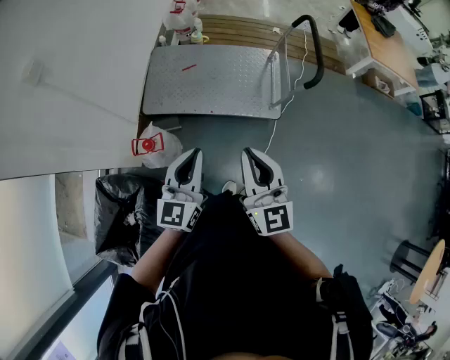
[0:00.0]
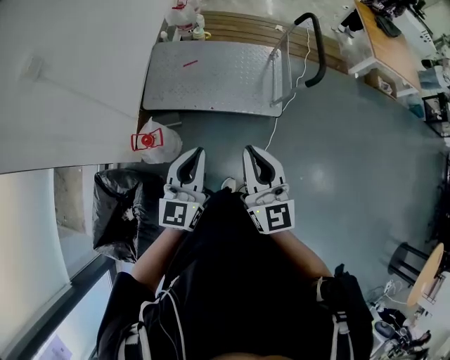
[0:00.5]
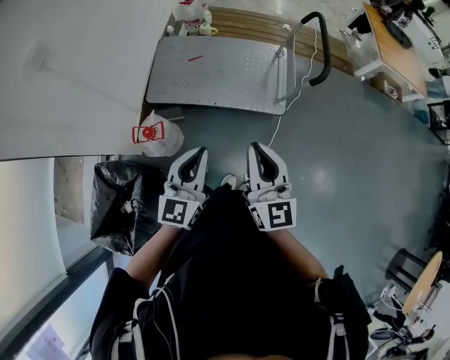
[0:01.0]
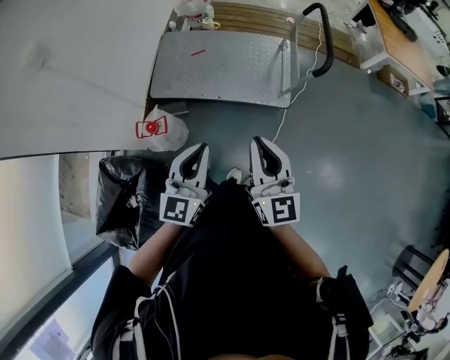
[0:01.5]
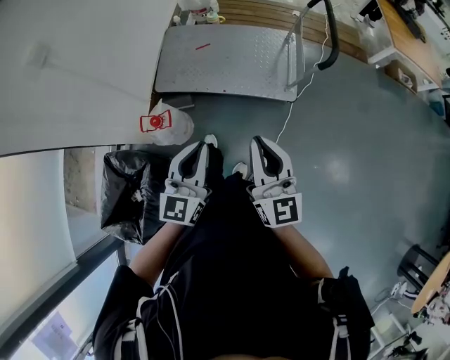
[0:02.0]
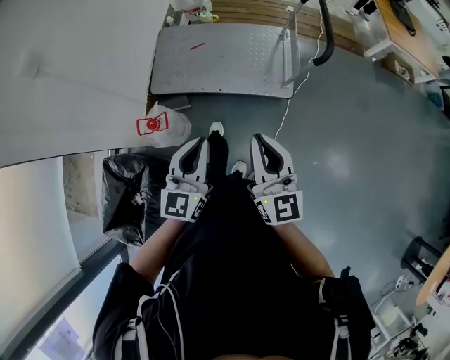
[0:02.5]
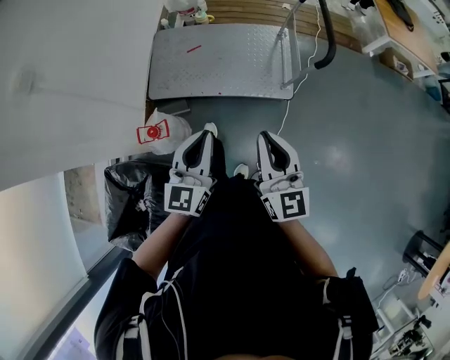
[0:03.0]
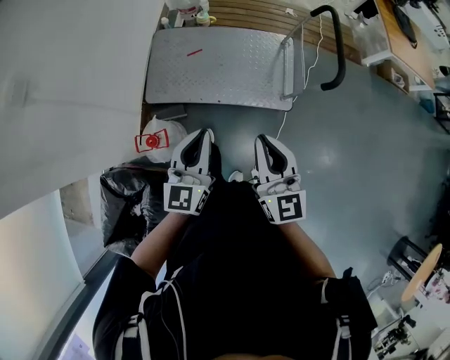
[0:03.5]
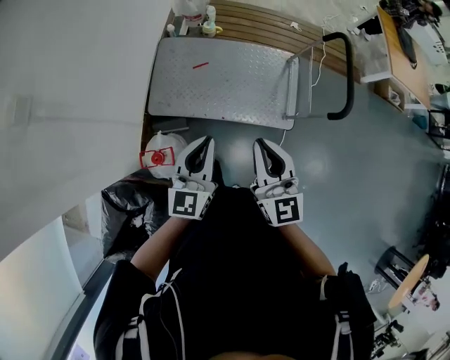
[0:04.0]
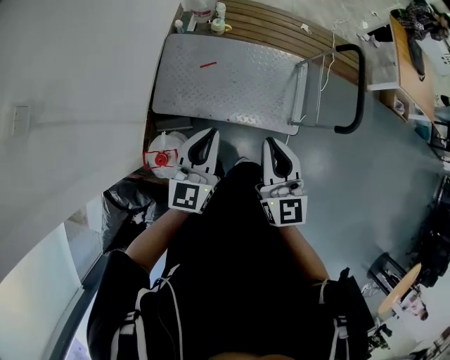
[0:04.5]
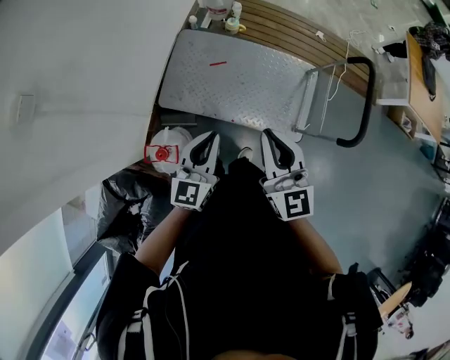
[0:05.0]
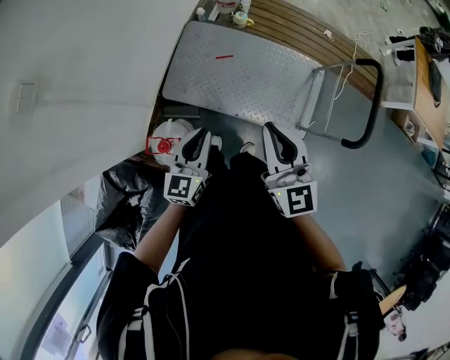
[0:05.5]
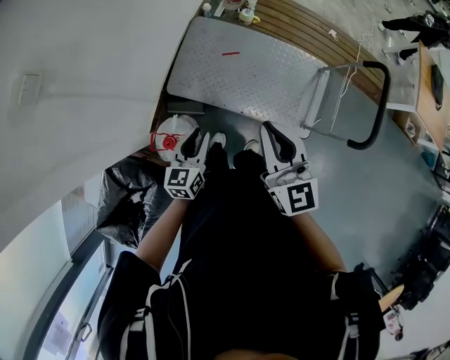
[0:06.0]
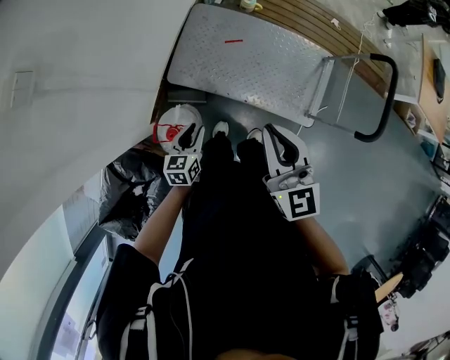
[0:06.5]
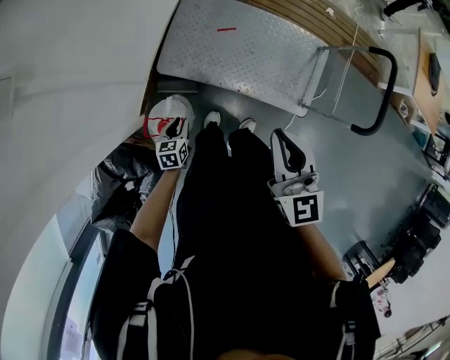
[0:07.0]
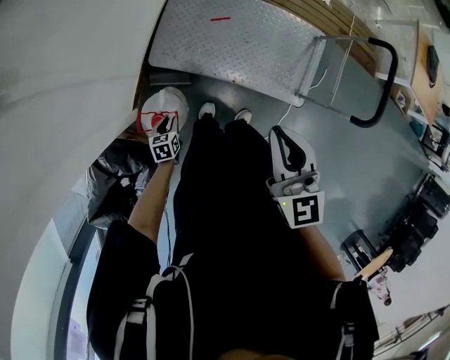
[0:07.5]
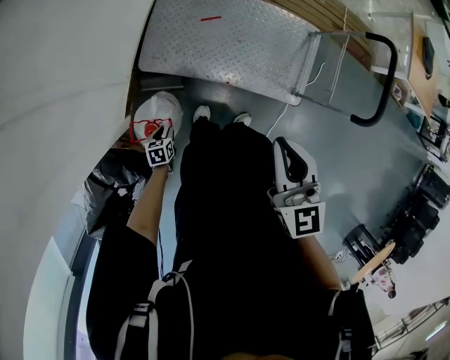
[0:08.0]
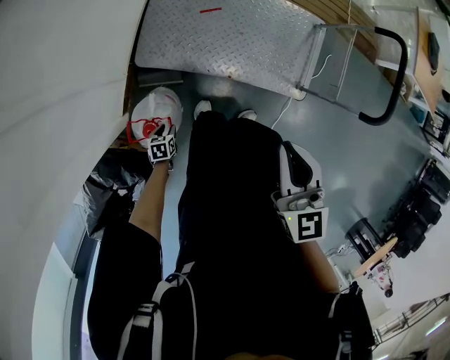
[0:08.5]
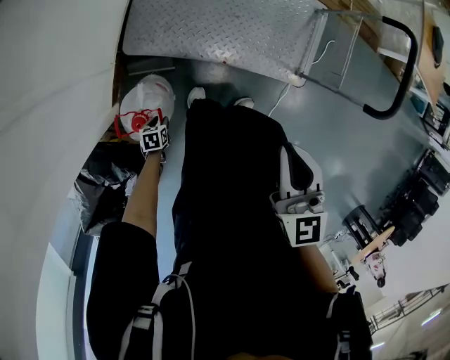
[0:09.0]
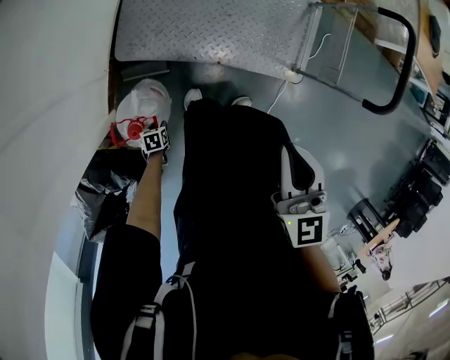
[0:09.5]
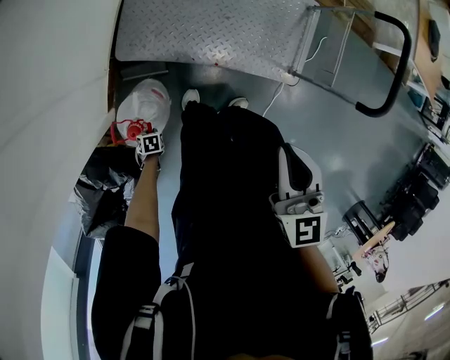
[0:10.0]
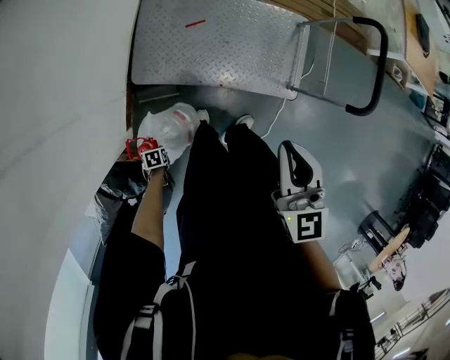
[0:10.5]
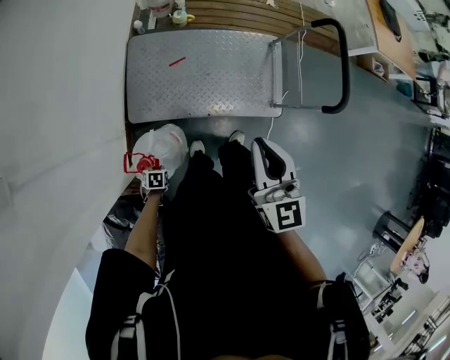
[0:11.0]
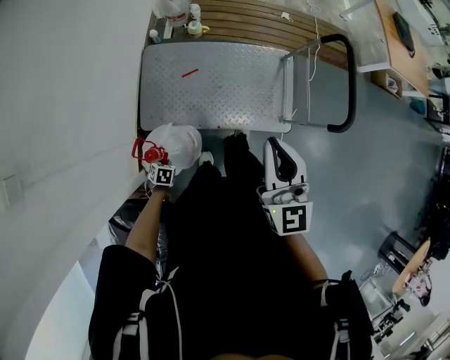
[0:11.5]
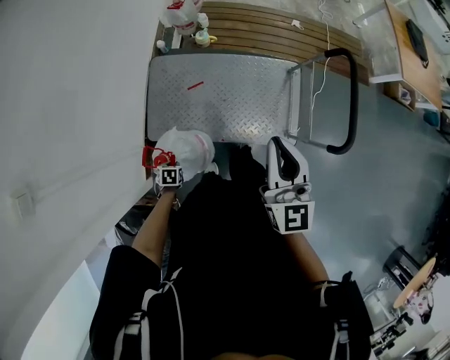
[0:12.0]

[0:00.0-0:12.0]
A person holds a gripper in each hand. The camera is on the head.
0:00.0 to 0:02.0: The right gripper moves some 5 cm, while the left gripper ends up about 5 cm from where it was.
0:02.0 to 0:04.0: The right gripper moves forward and to the left, about 30 cm. Meanwhile the left gripper is displaced forward by some 25 cm.
0:04.0 to 0:06.0: The left gripper travels downward and to the left by approximately 20 cm, and changes its angle by approximately 20 degrees. Meanwhile the right gripper moves forward and to the left, approximately 15 cm.
0:06.0 to 0:08.0: The left gripper shifts roughly 35 cm downward, and tips its fingers downward by some 40 degrees. Meanwhile the right gripper shifts some 5 cm downward.
0:08.0 to 0:10.0: The right gripper goes approximately 5 cm downward; the left gripper moves downward, some 10 cm, changes its angle by about 30 degrees, and closes up.
0:10.0 to 0:12.0: The left gripper moves about 35 cm, while the right gripper changes place by about 25 cm, and turns by some 30 degrees.

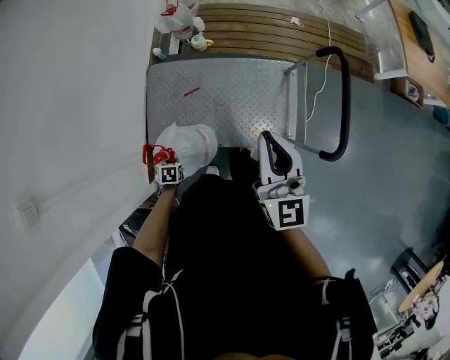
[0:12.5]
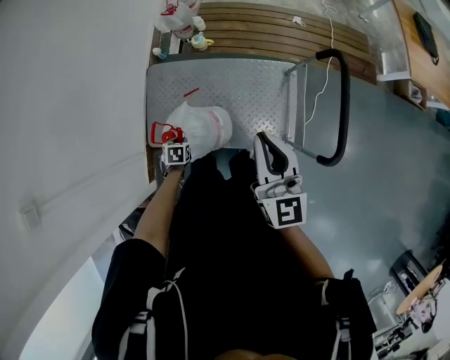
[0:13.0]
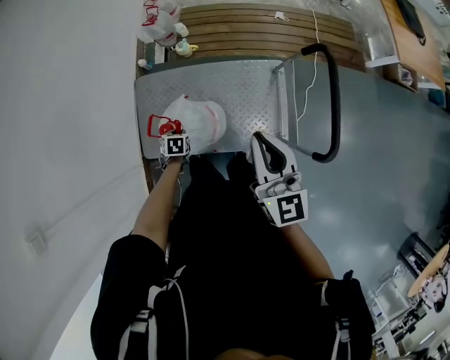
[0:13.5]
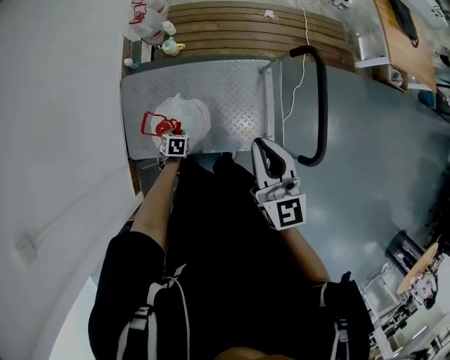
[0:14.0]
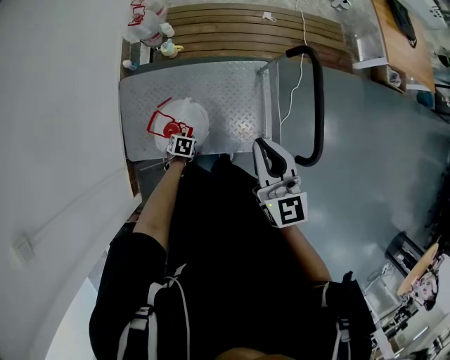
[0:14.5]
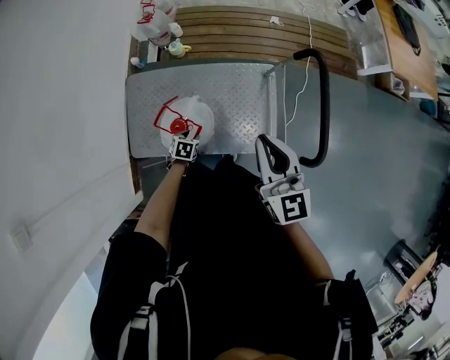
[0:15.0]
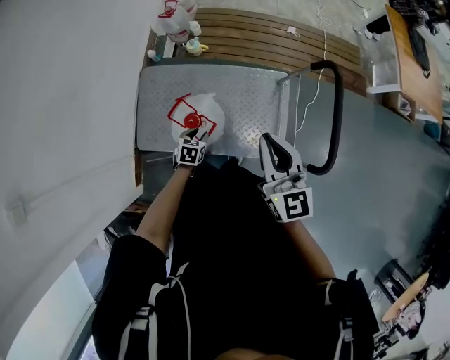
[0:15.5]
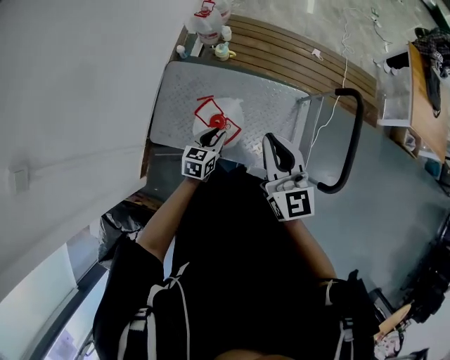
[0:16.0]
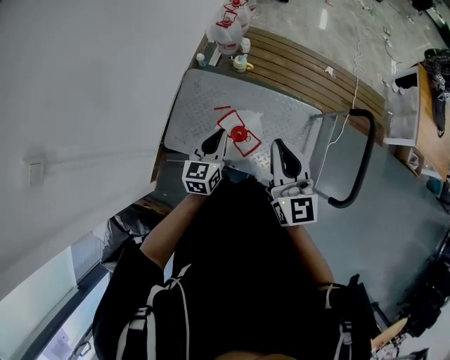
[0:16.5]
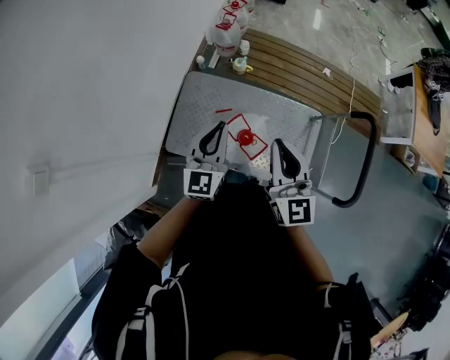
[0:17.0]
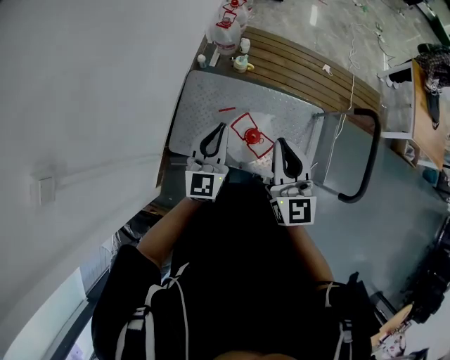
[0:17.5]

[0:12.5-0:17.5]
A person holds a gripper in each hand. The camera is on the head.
0:12.5 to 0:15.0: The left gripper ends up roughly 25 cm from where it was, changes its angle by about 20 degrees, and opens its fingers. Meanwhile the right gripper changes place by roughly 10 cm.
0:15.0 to 0:17.5: The right gripper shifts approximately 25 cm to the left; the left gripper is displaced upward and to the left by about 40 cm, points its fingers roughly 60 degrees further upward, and closes up.

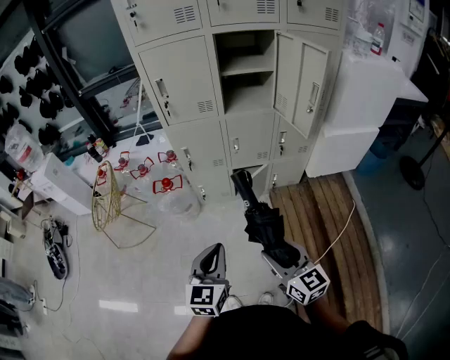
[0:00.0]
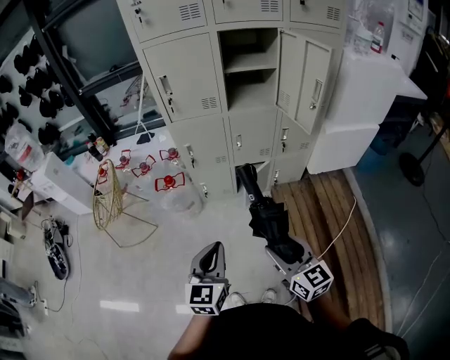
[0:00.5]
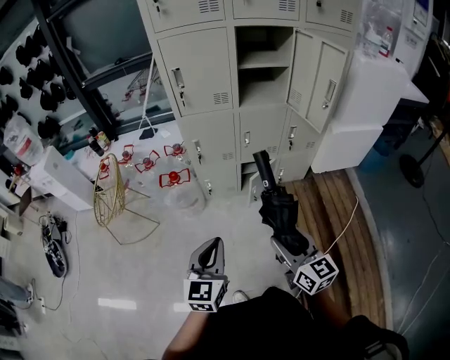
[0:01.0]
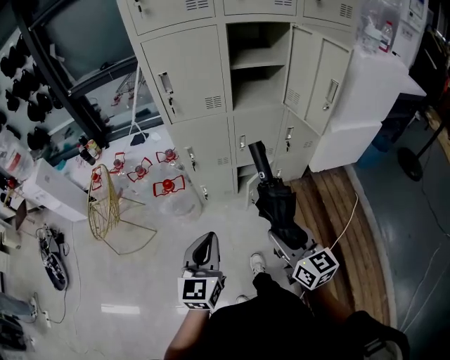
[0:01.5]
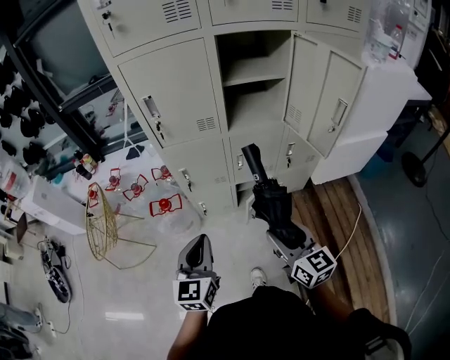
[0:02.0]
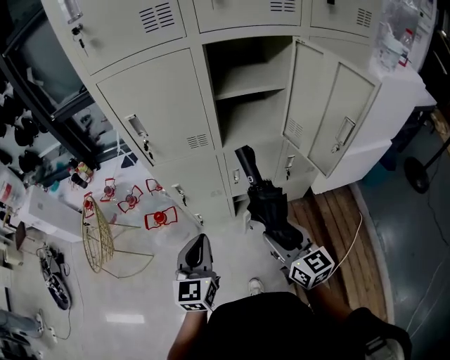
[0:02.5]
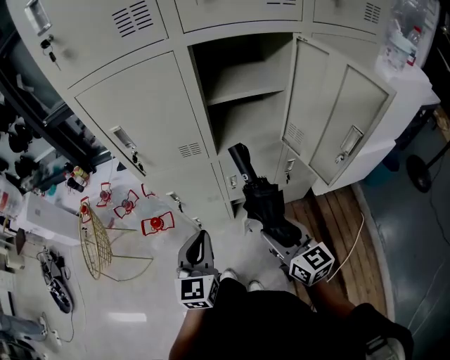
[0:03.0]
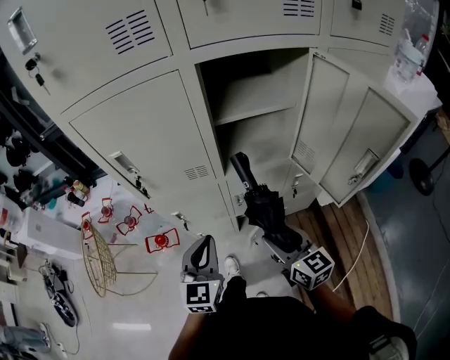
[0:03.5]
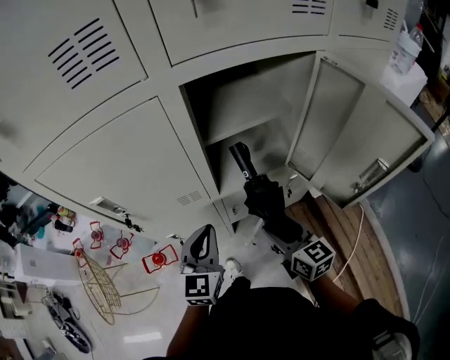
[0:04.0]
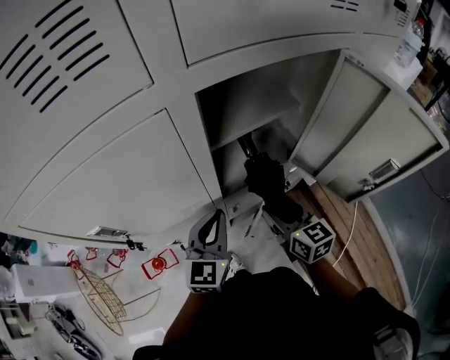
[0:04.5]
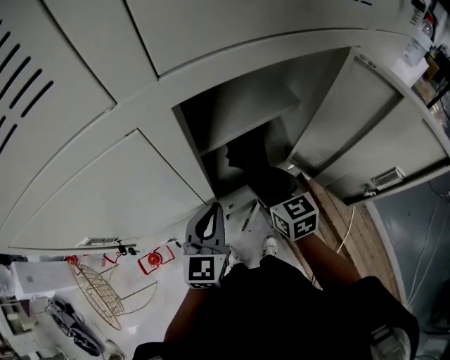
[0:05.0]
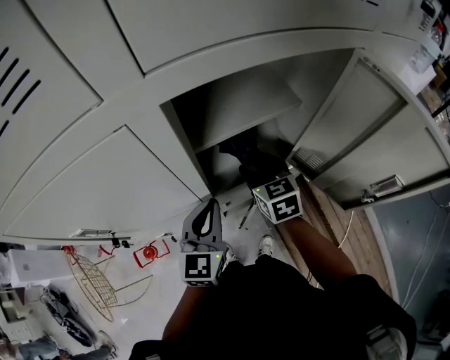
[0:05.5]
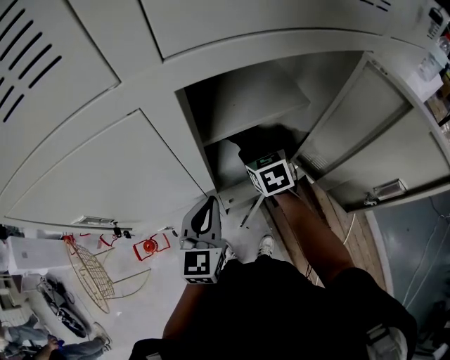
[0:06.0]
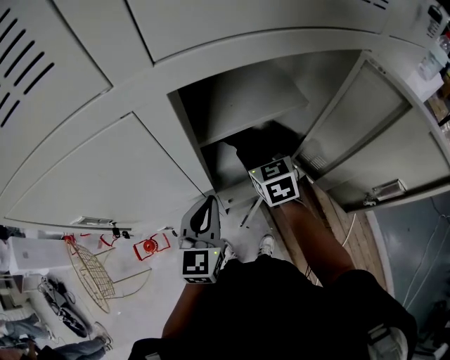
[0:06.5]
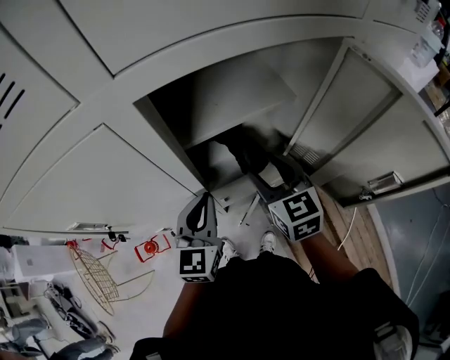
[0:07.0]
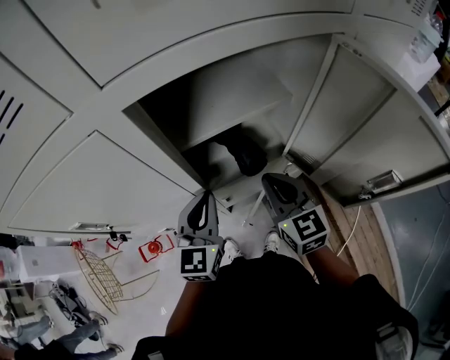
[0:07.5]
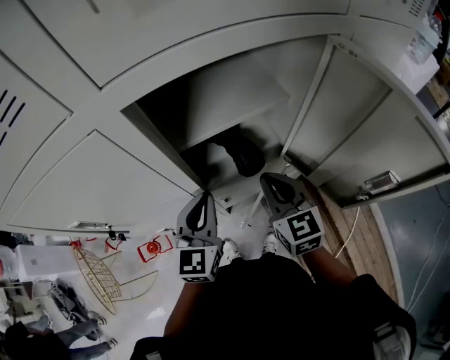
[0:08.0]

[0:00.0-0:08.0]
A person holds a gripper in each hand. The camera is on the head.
0:00.0 to 0:02.0: The grippers both shift forward by roughly 20 cm.
0:02.0 to 0:04.0: The grippers both shift forward by some 30 cm.
0:04.0 to 0:06.0: The right gripper is displaced forward by approximately 25 cm, and changes its angle by about 30 degrees; the left gripper heads forward, covering some 10 cm.
0:06.0 to 0:08.0: The right gripper is displaced backward and upward by some 15 cm, swivels some 20 degrees, and closes.

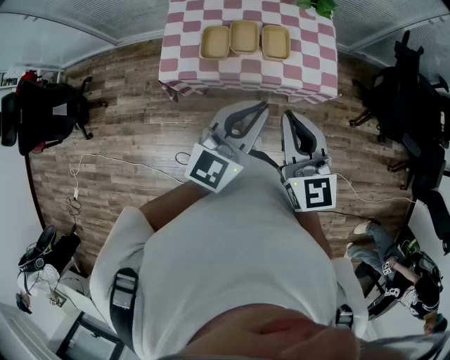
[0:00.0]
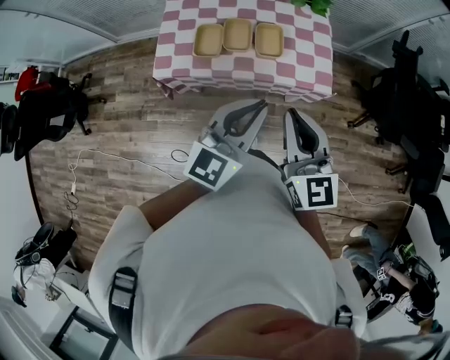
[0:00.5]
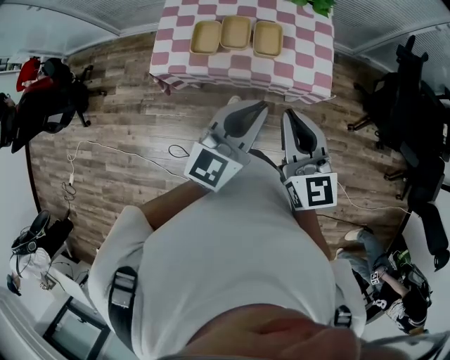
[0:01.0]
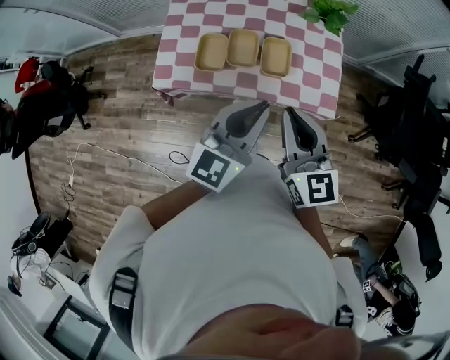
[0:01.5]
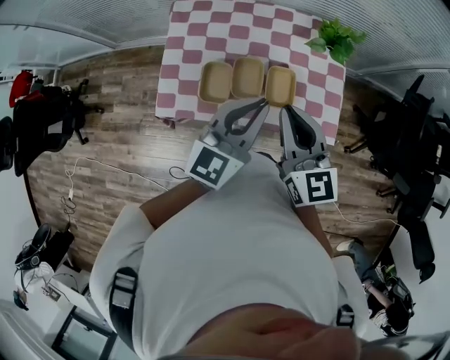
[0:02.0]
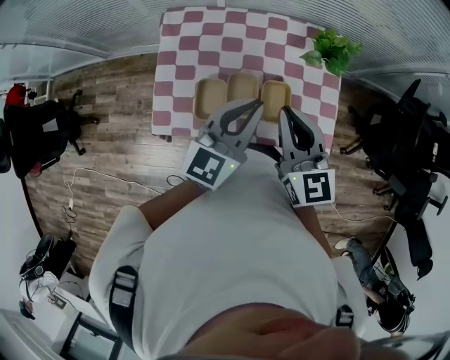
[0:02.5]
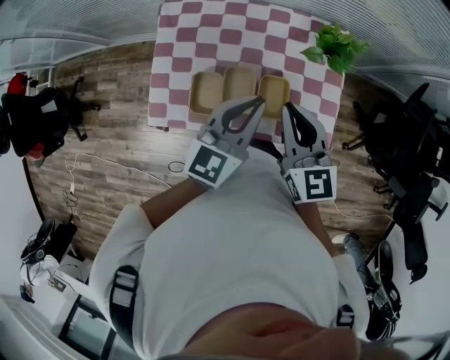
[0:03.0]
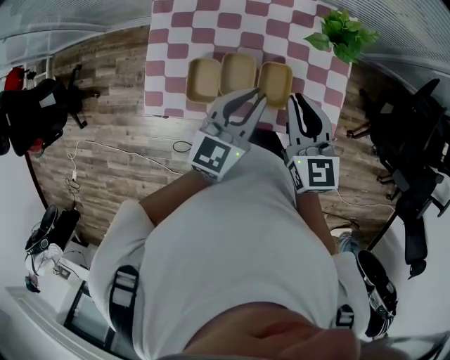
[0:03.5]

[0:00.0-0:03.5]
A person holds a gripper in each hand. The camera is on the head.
0:00.0 to 0:02.0: The two grippers go some 20 cm forward.
0:02.0 to 0:03.5: The left gripper heads downward and forward, covering approximately 10 cm, while the right gripper moves forward, downward and to the right, about 15 cm.
